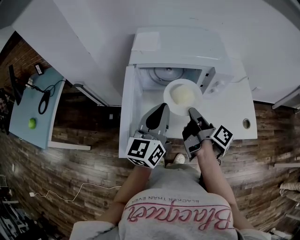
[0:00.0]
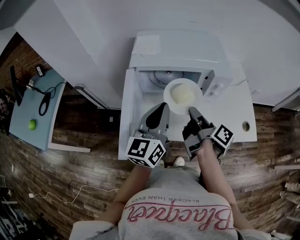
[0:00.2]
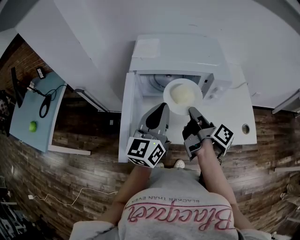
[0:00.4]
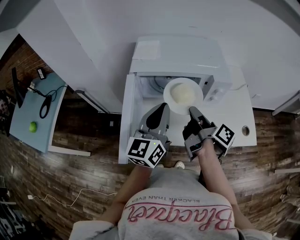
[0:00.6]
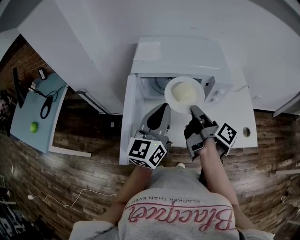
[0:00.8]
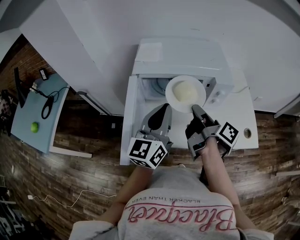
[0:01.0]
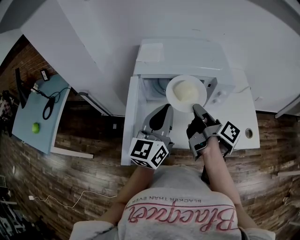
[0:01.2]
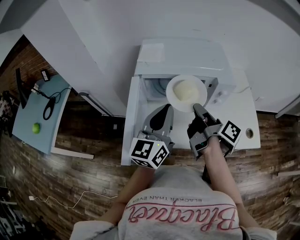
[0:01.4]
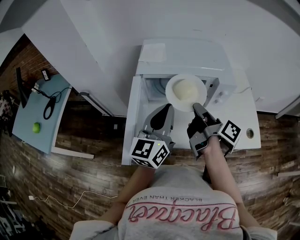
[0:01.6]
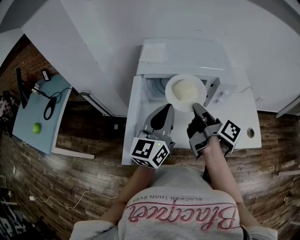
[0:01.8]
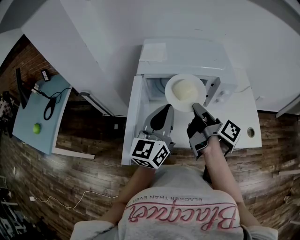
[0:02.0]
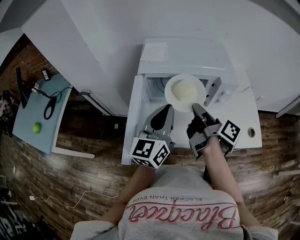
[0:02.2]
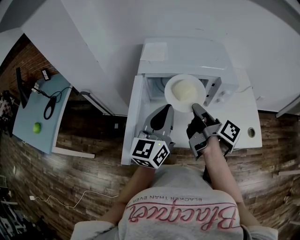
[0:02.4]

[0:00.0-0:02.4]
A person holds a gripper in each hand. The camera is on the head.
0:00.0 to 0:01.2: The right gripper ends up about 5 cm from where it was.
0:01.2 to 0:02.4: Both grippers stay put.

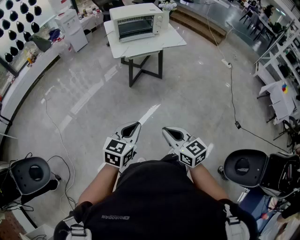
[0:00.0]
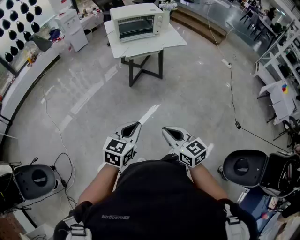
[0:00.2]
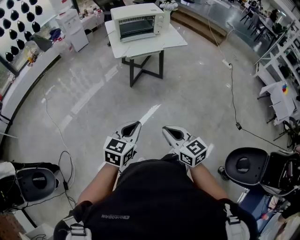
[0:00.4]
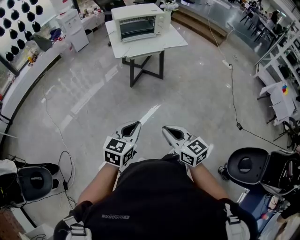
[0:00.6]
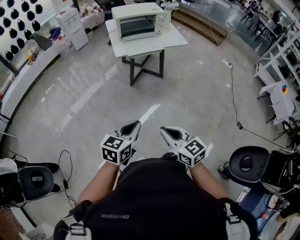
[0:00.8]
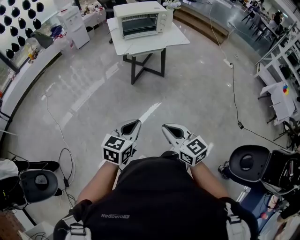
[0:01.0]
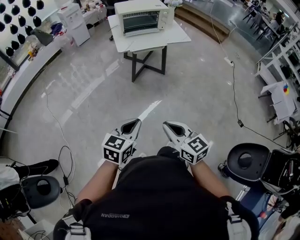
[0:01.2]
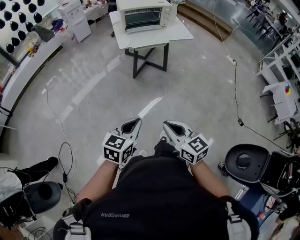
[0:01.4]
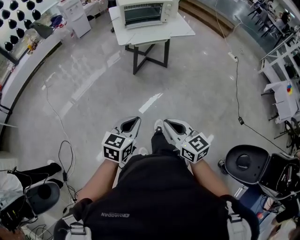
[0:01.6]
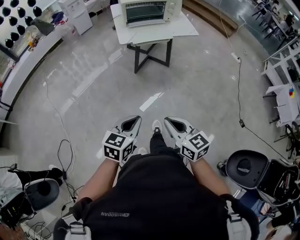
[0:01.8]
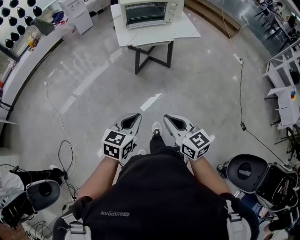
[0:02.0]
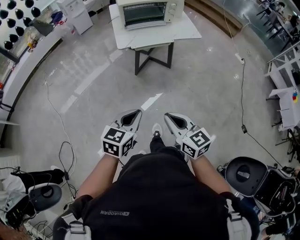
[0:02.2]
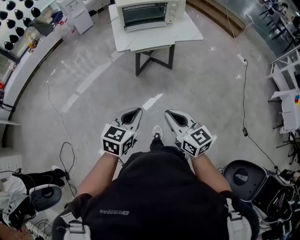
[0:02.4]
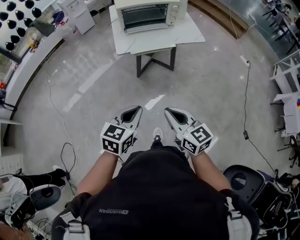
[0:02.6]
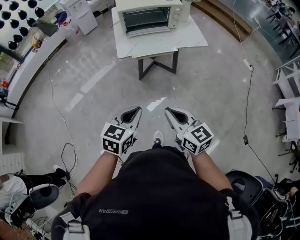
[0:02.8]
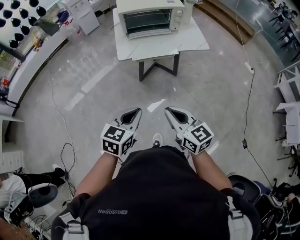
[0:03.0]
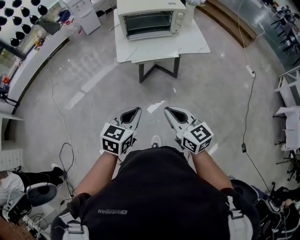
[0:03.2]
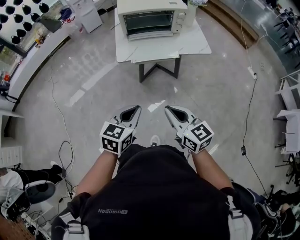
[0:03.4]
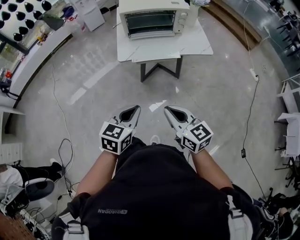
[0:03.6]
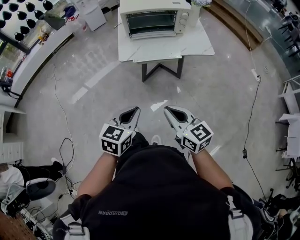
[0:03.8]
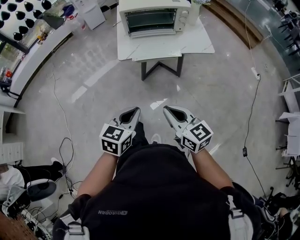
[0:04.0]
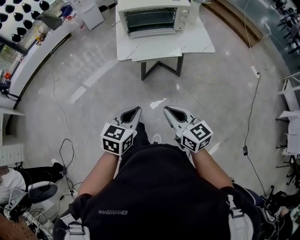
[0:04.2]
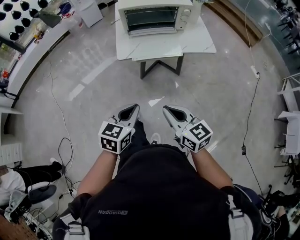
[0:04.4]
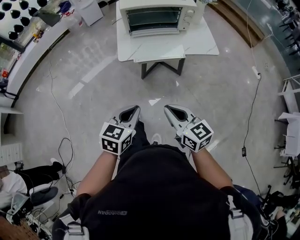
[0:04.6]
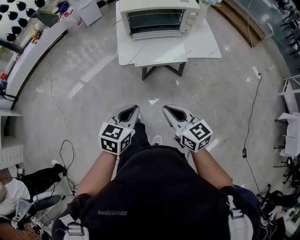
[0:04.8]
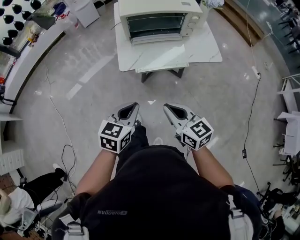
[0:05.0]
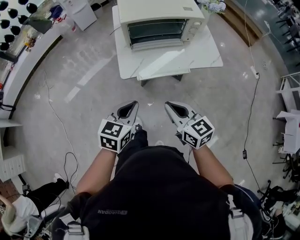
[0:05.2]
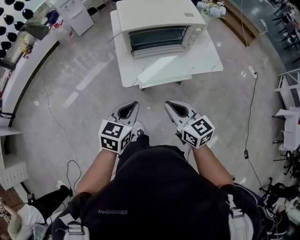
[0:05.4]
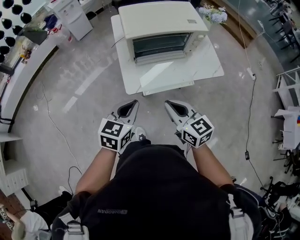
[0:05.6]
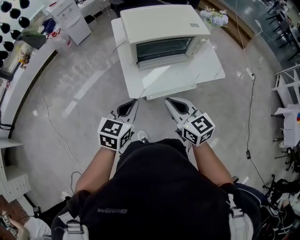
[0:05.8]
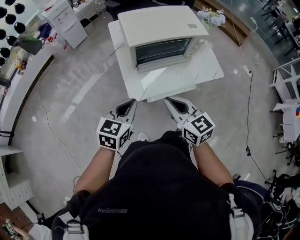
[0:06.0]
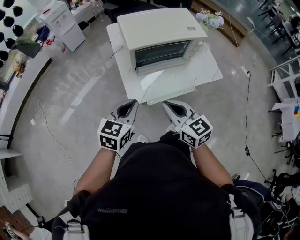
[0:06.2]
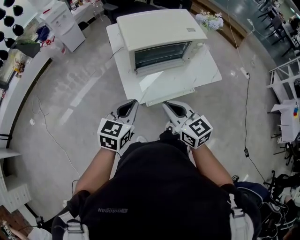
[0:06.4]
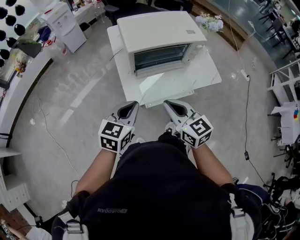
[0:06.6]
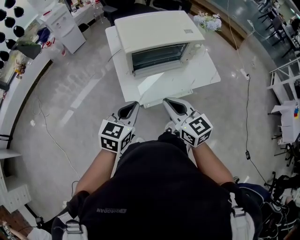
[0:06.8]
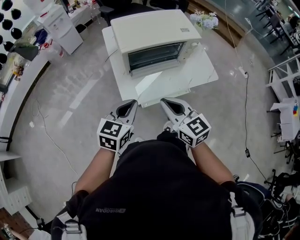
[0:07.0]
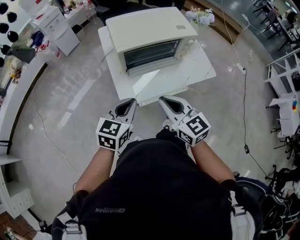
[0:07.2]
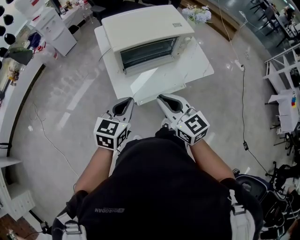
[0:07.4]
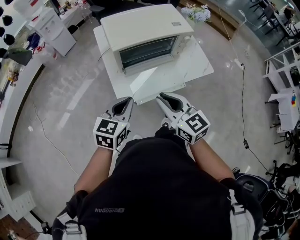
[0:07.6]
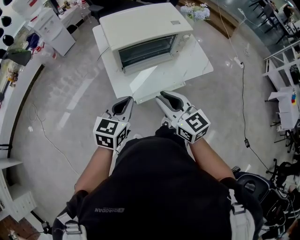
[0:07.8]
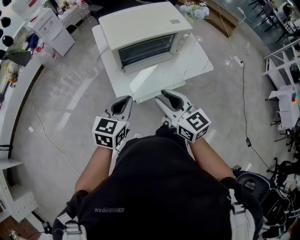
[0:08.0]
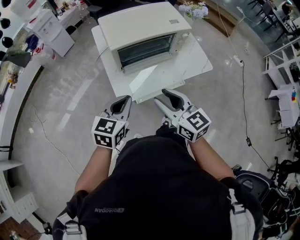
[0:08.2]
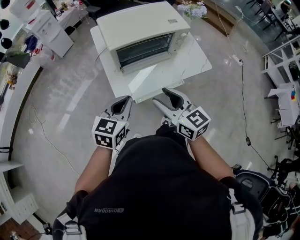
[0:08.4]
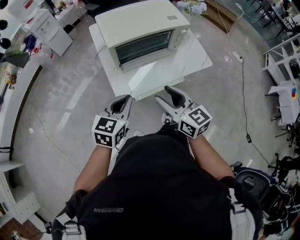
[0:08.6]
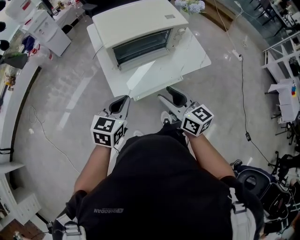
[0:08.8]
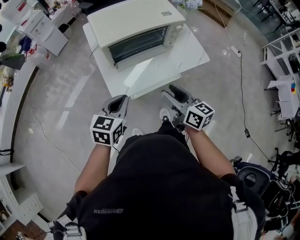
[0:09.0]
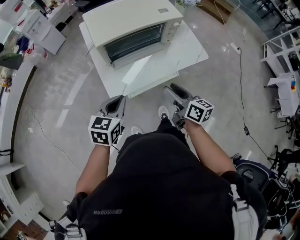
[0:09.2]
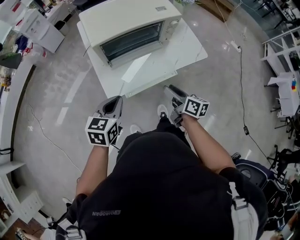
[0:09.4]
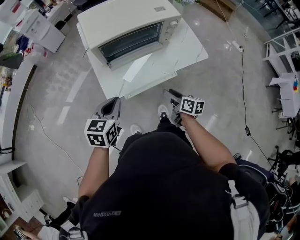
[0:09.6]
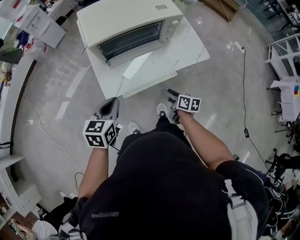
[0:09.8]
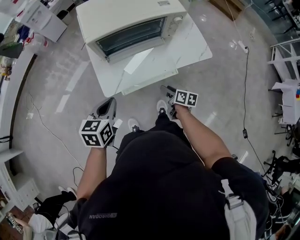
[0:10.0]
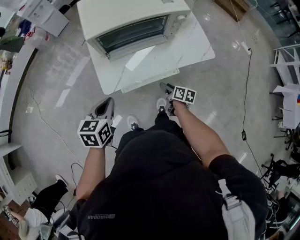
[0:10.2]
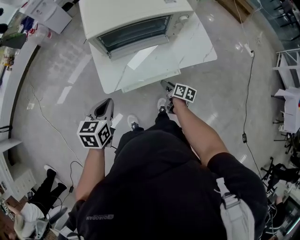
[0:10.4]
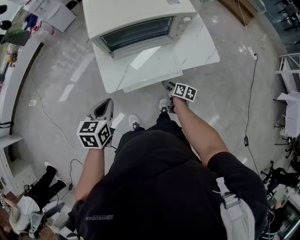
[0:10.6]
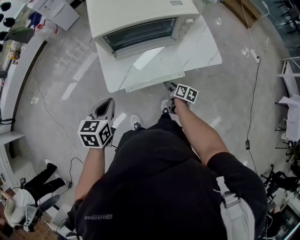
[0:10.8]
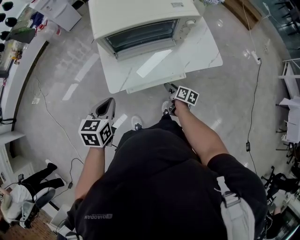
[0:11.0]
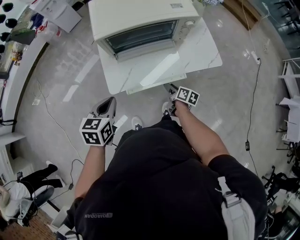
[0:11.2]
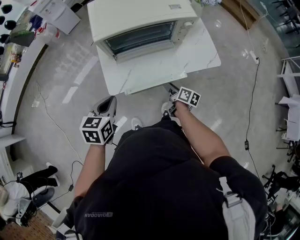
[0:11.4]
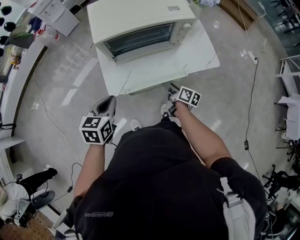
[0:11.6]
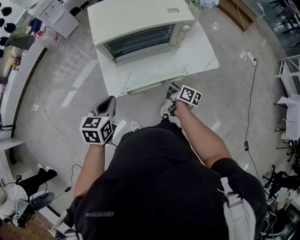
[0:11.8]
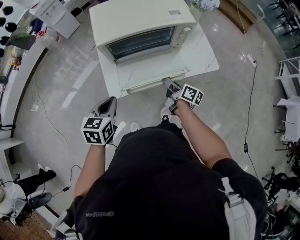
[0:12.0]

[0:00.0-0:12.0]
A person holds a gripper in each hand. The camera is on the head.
0:00.0 to 0:01.6: The grippers stay close to where they were, moving slightly.
0:01.6 to 0:03.0: Both grippers travel together forward, about 25 cm.
0:03.0 to 0:04.4: The grippers both shift forward by some 5 cm.
0:04.4 to 0:06.0: The left gripper moves forward and to the left, approximately 30 cm. The right gripper heads forward, covering about 30 cm.
0:06.0 to 0:07.6: The grippers move only a little.
0:07.6 to 0:09.0: The right gripper travels to the right and downward by roughly 10 cm, rotates some 30 degrees, and opens its fingers.
0:09.0 to 0:10.4: The right gripper shifts approximately 30 cm downward, and rotates roughly 40 degrees. The left gripper shifts roughly 5 cm downward, and turns by approximately 20 degrees.
0:10.4 to 0:12.0: The right gripper shifts approximately 15 cm upward, and turns by about 20 degrees.

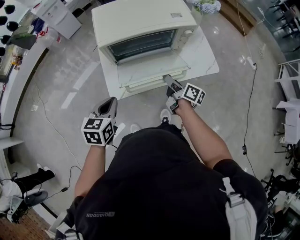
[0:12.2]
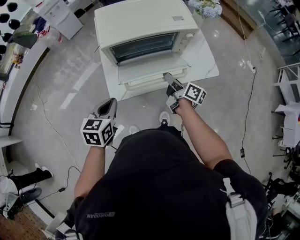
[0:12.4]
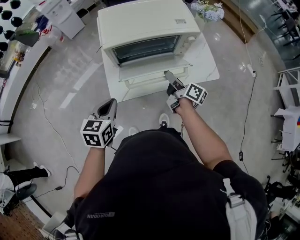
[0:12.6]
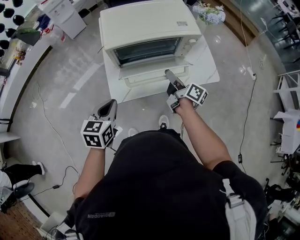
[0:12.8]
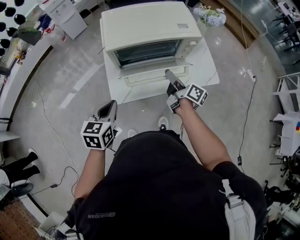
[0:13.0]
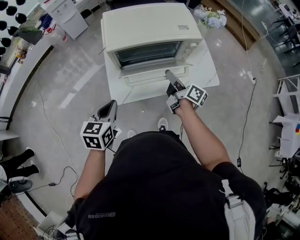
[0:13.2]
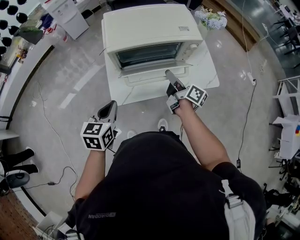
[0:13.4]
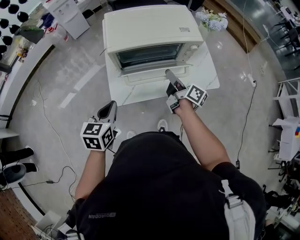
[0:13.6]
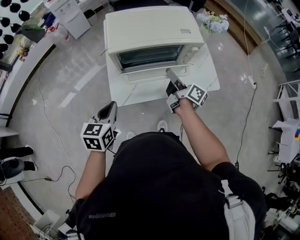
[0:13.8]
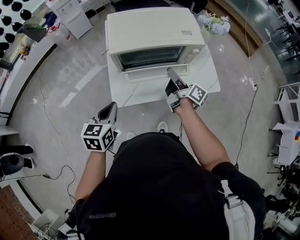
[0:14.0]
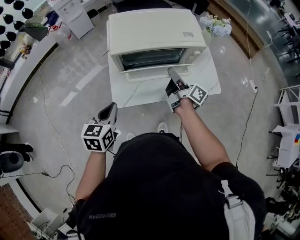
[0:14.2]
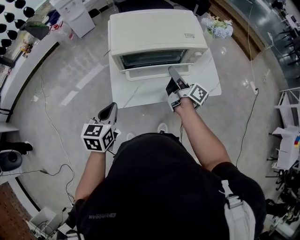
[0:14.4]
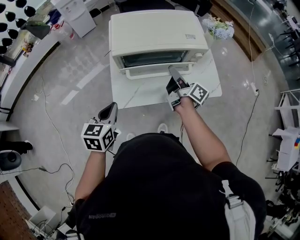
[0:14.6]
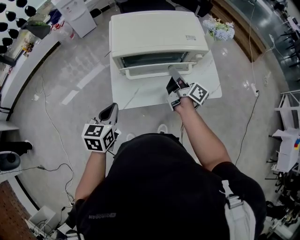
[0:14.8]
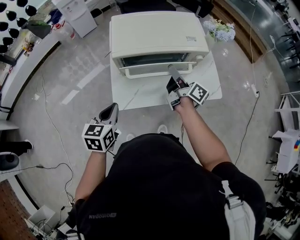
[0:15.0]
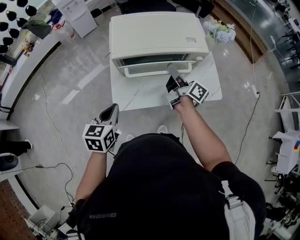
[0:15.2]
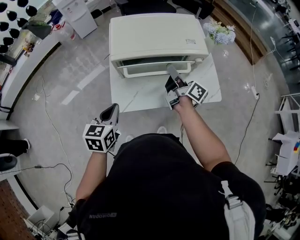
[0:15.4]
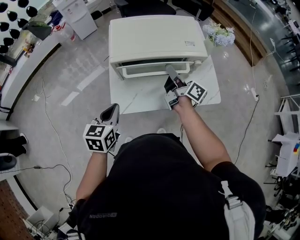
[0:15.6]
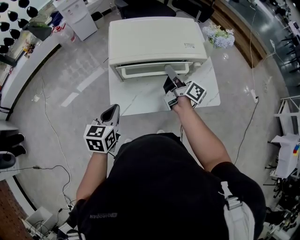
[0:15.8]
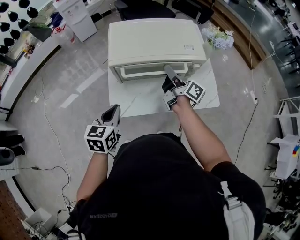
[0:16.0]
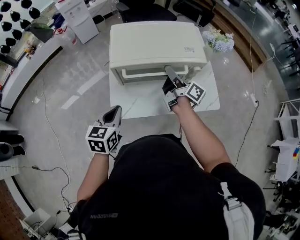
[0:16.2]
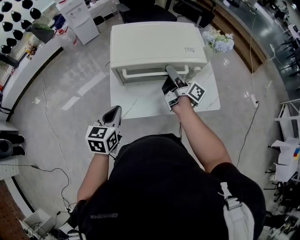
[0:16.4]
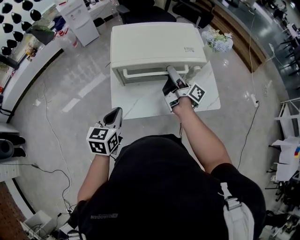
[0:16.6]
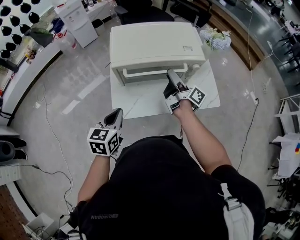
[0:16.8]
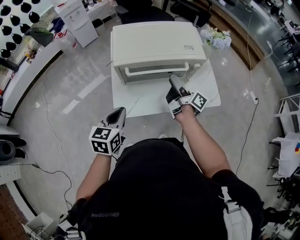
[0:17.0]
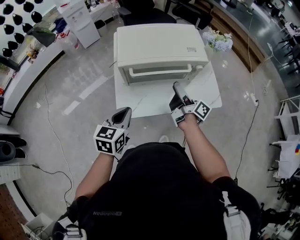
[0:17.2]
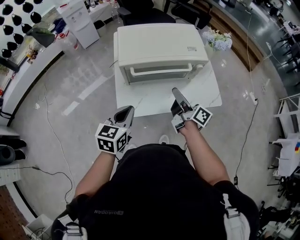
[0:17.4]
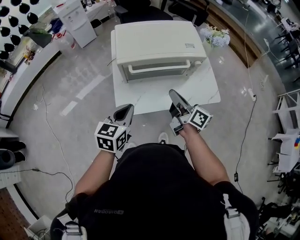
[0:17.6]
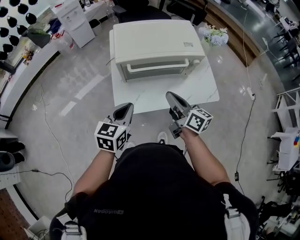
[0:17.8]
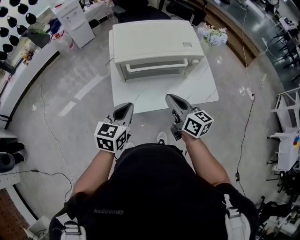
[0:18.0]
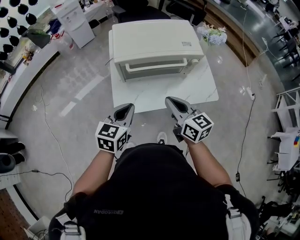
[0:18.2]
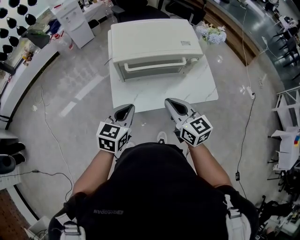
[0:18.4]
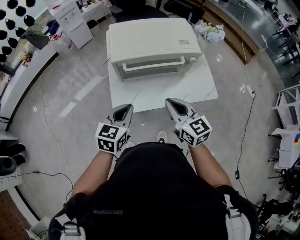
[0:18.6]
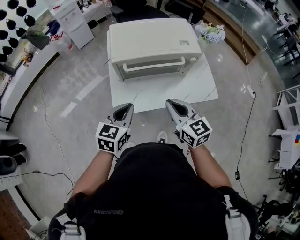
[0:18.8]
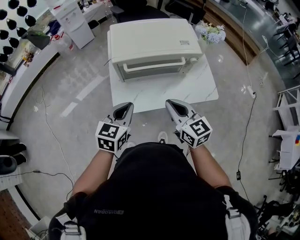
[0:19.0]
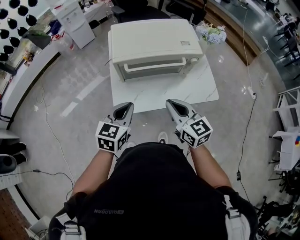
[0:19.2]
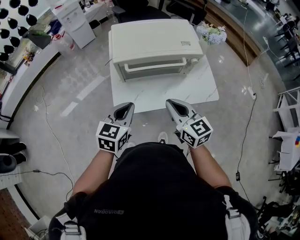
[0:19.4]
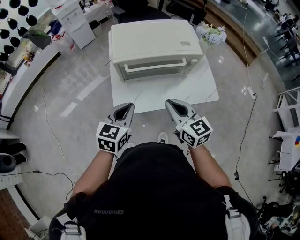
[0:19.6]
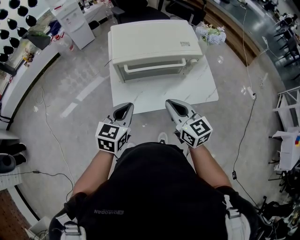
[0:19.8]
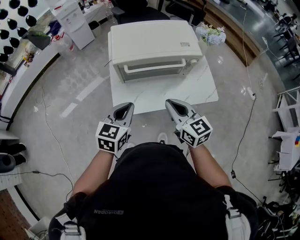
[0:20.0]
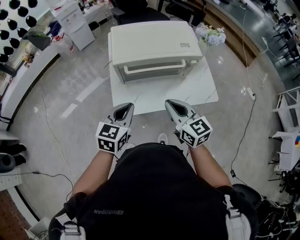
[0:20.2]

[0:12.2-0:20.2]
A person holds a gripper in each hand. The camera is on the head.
0:12.2 to 0:13.8: The right gripper travels upward and forward by roughly 10 cm.
0:13.8 to 0:15.4: The right gripper moves forward, roughly 5 cm.
0:15.4 to 0:17.0: The right gripper opens up.
0:17.0 to 0:18.6: The right gripper goes approximately 15 cm backward, twists approximately 70 degrees counterclockwise, seen from behind, and closes its fingers.
0:18.6 to 0:20.2: The grippers make only small movements.

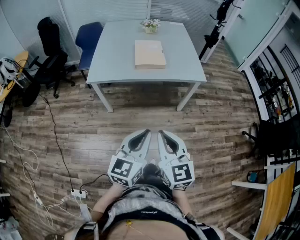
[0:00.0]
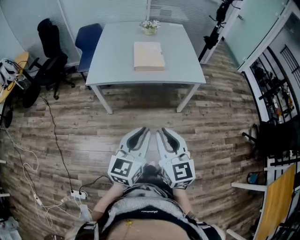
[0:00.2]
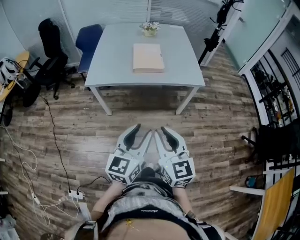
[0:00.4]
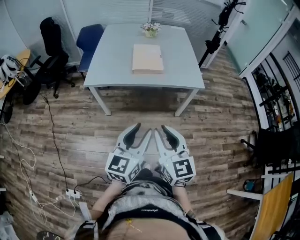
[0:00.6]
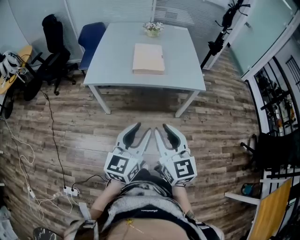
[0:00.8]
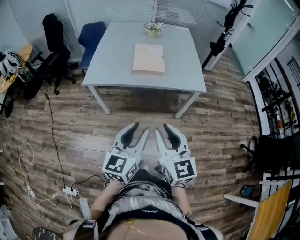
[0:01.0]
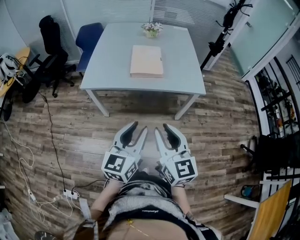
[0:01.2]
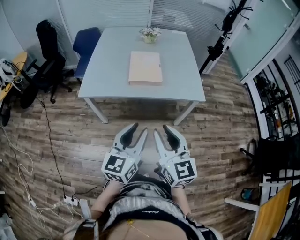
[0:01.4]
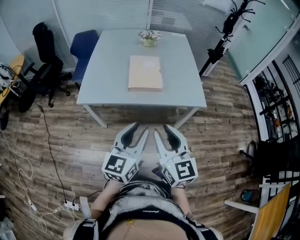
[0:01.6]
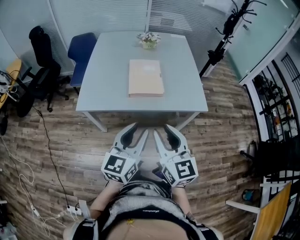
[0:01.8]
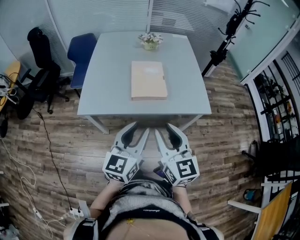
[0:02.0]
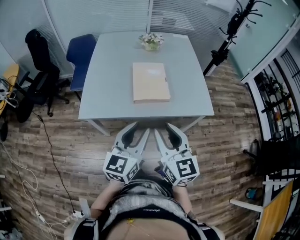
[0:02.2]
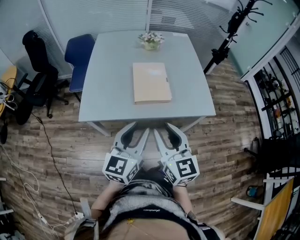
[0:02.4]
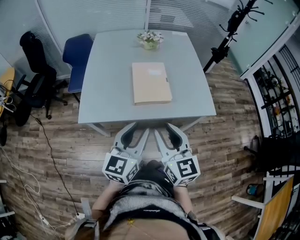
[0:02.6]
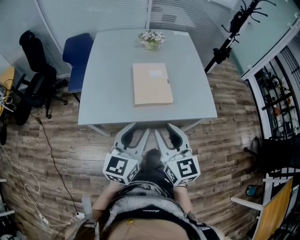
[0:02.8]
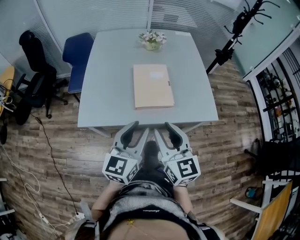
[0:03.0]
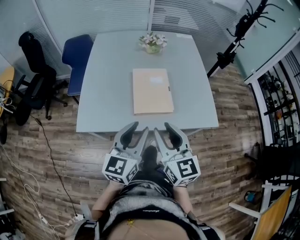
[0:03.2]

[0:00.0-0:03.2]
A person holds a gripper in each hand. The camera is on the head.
0:00.0 to 0:01.6: The grippers both shift forward by roughly 20 cm. The left gripper opens its fingers; the right gripper opens its fingers.
0:01.6 to 0:03.2: Both grippers move forward, some 20 cm.